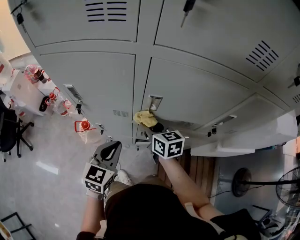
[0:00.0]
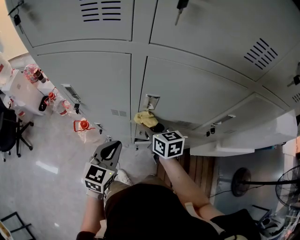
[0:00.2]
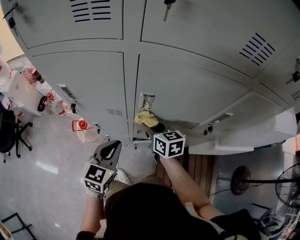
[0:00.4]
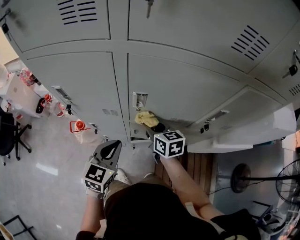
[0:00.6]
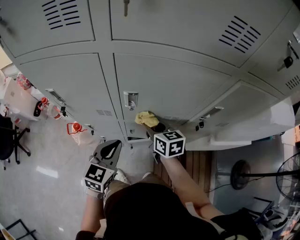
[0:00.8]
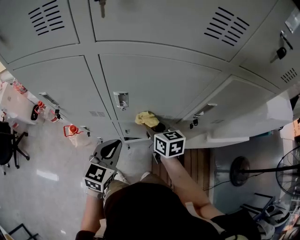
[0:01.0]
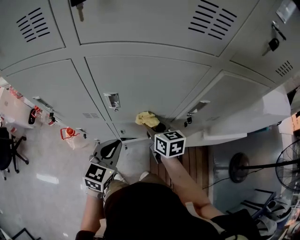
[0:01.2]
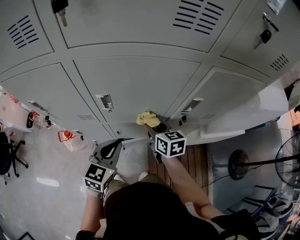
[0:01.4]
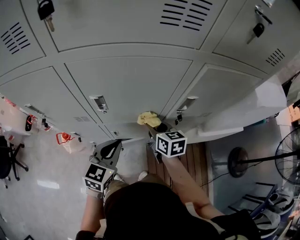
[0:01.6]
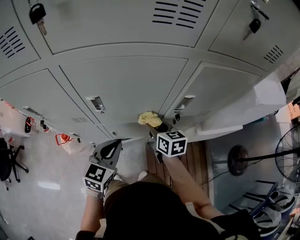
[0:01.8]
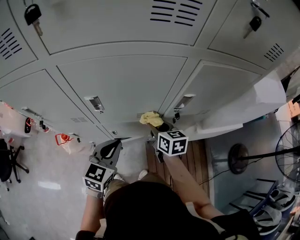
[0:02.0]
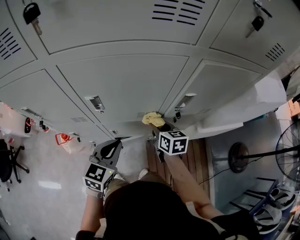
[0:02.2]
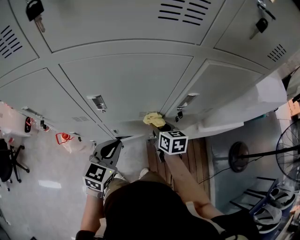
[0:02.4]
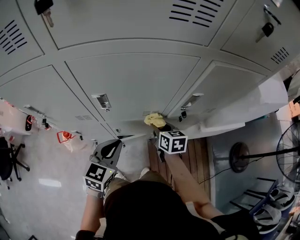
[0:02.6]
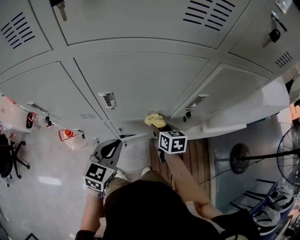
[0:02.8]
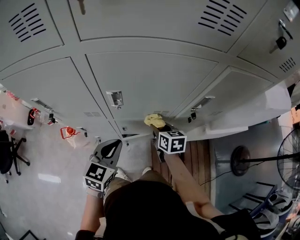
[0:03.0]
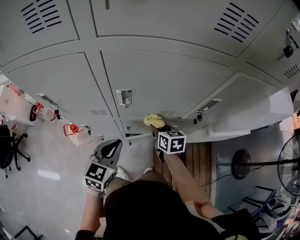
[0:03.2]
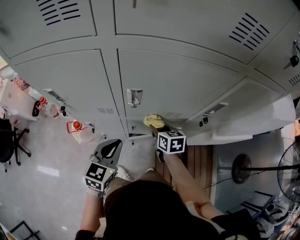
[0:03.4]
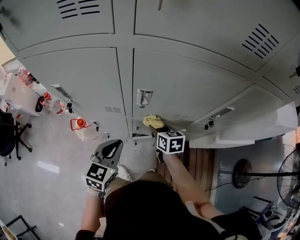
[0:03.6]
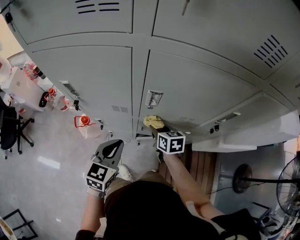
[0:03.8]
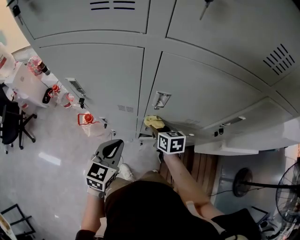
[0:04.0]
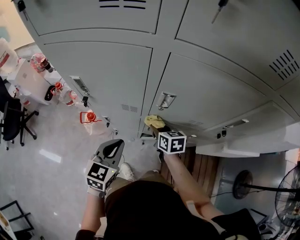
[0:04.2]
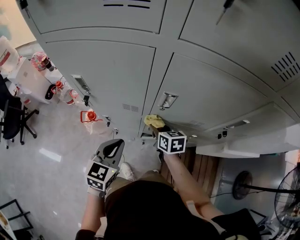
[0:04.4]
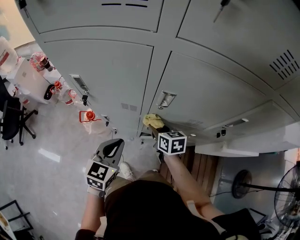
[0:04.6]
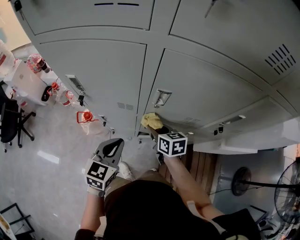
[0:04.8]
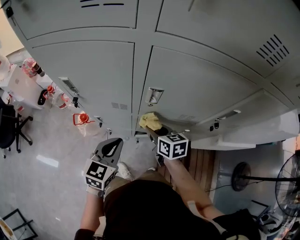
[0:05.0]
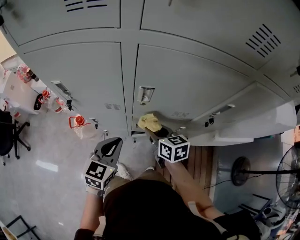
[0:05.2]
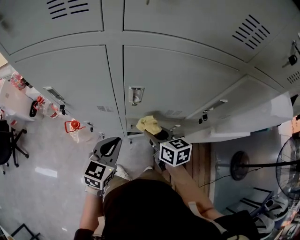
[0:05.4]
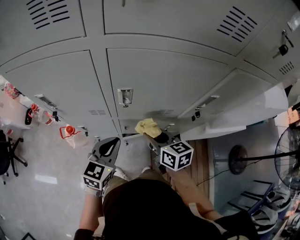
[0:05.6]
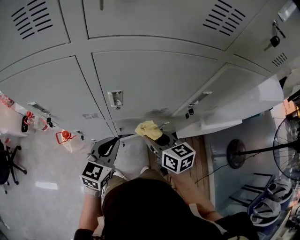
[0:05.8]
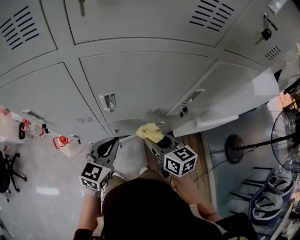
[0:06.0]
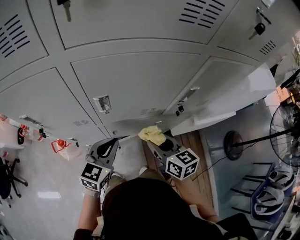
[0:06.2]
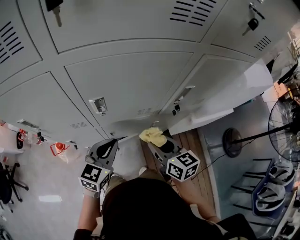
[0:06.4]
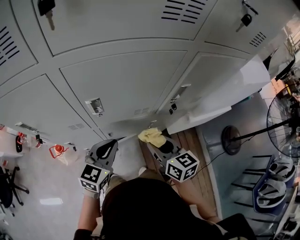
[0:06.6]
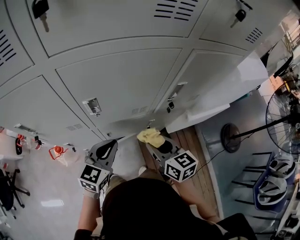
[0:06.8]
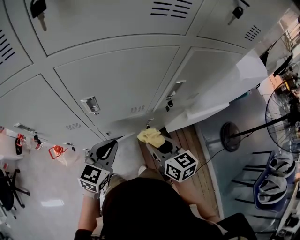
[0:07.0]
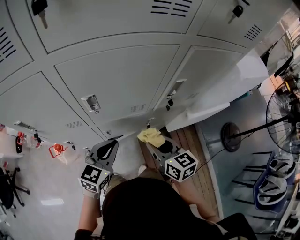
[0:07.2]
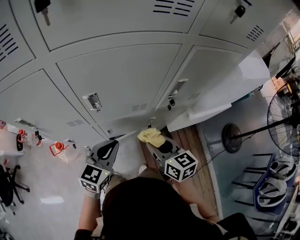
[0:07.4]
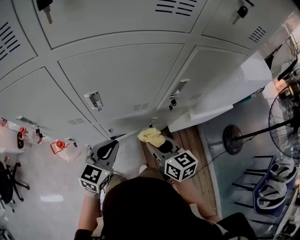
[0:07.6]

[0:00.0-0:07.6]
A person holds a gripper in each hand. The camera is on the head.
0:00.0 to 0:01.6: Both grippers travel together to the right, about 15 cm.
0:01.6 to 0:03.0: The left gripper shifts by about 5 cm. The right gripper heads downward, covering approximately 5 cm.
0:03.0 to 0:04.6: The grippers both shift to the left by approximately 15 cm.
0:04.6 to 0:06.0: The right gripper travels to the right, upward and backward by some 20 cm, while the left gripper travels to the right by roughly 10 cm, and turns by approximately 20 degrees.
0:06.0 to 0:07.6: The right gripper moves about 5 cm.

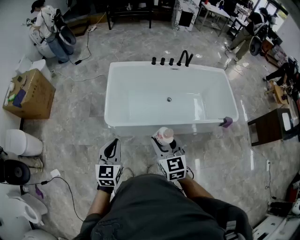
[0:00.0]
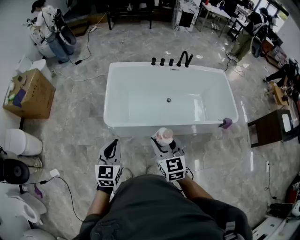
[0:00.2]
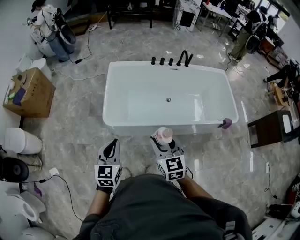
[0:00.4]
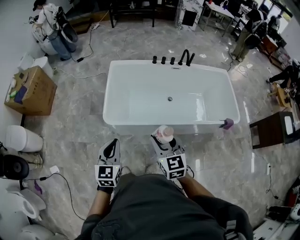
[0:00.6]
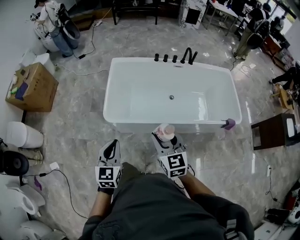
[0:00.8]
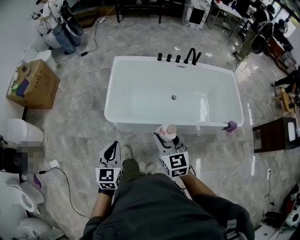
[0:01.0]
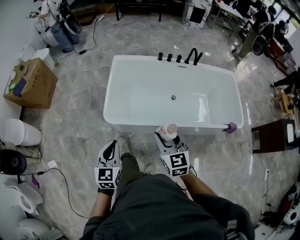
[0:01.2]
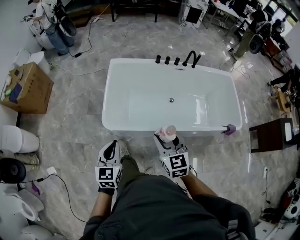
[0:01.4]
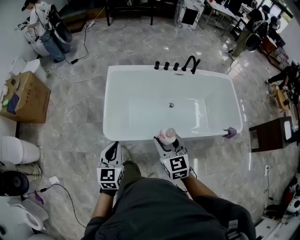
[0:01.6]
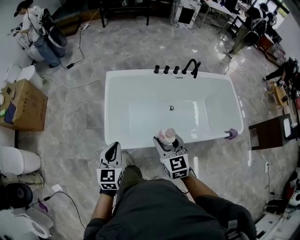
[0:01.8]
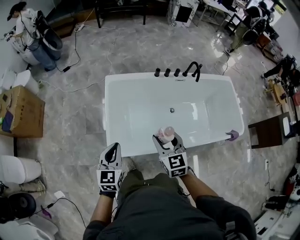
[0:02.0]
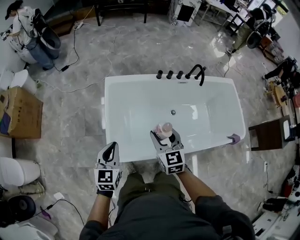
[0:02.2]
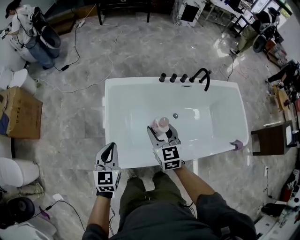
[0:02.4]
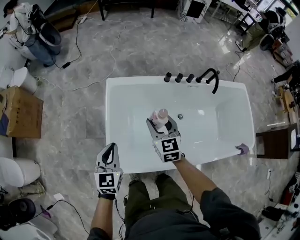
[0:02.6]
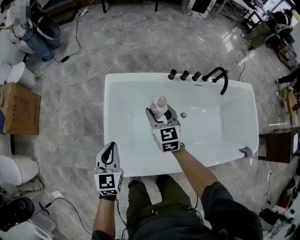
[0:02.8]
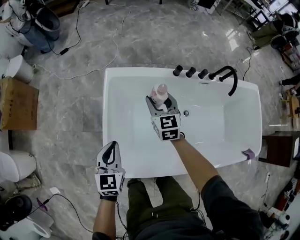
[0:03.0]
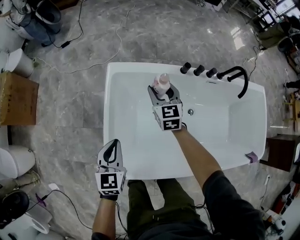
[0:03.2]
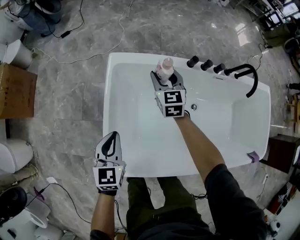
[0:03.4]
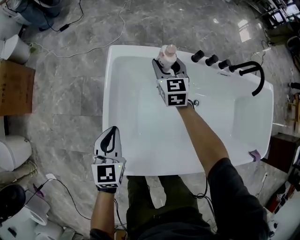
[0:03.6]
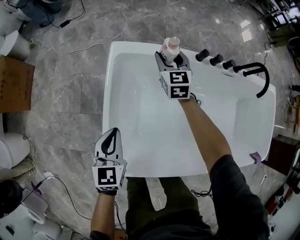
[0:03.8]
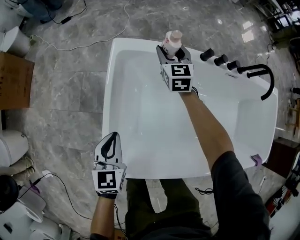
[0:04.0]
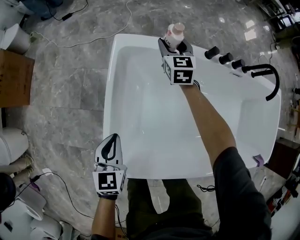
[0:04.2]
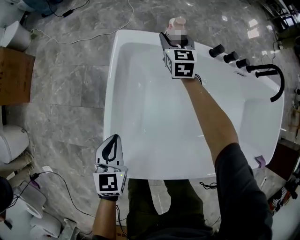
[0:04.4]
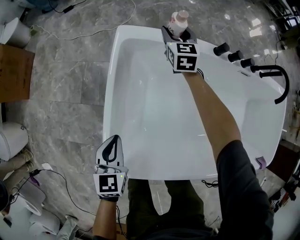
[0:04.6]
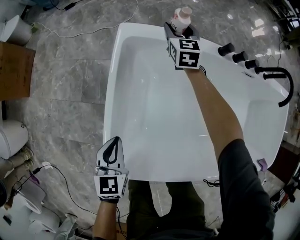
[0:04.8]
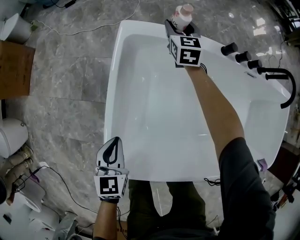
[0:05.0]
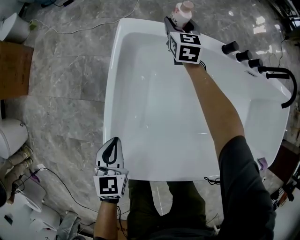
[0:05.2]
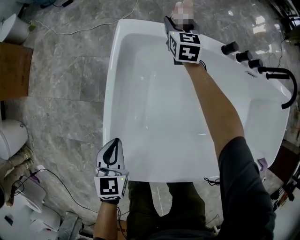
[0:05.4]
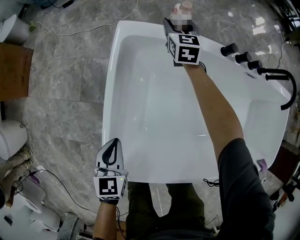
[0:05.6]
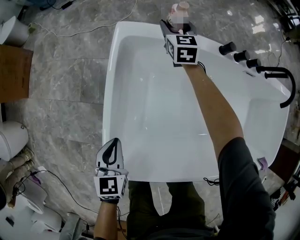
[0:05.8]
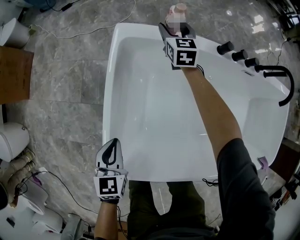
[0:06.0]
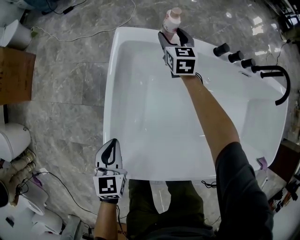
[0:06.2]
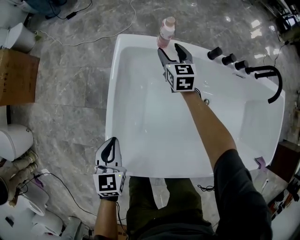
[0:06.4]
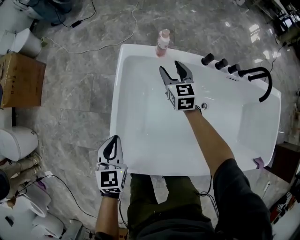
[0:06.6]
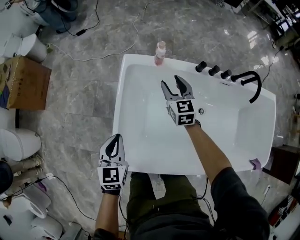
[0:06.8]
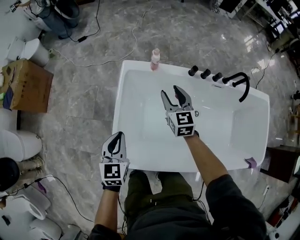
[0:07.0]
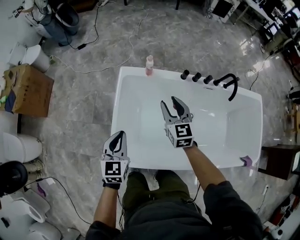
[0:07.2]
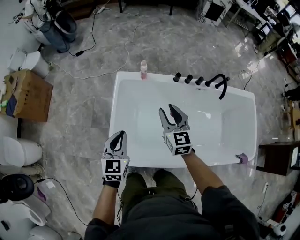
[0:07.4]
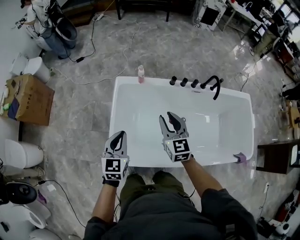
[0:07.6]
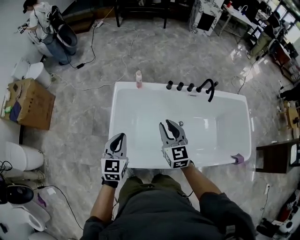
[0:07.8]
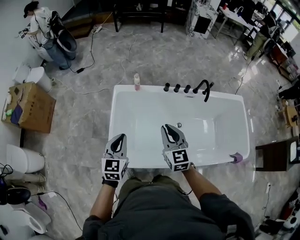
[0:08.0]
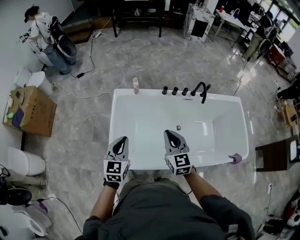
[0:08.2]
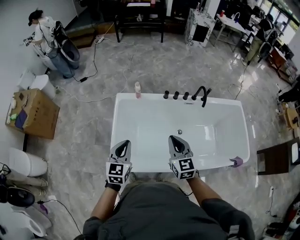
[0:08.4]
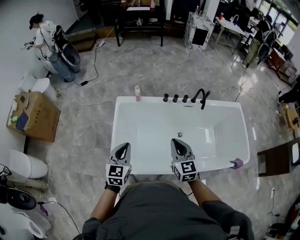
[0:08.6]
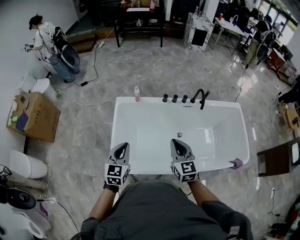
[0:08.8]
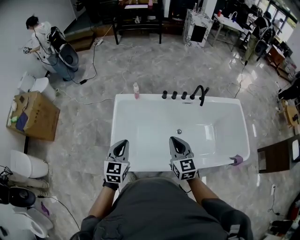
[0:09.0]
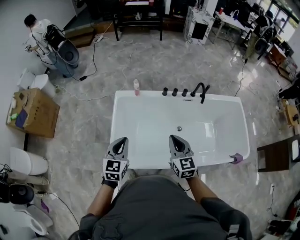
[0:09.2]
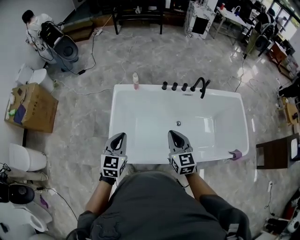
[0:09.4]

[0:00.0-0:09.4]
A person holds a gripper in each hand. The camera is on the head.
0:00.0 to 0:01.6: The grippers both shift forward by approximately 15 cm.
0:01.6 to 0:03.2: The two grippers go about 50 cm forward and downward.
0:03.2 to 0:04.8: The left gripper travels downward by about 15 cm, while the right gripper shifts roughly 25 cm forward and downward.
0:04.8 to 0:06.2: The grippers make only small movements.
0:06.2 to 0:07.8: The right gripper shifts about 60 cm backward and upward, and closes its fingers. The left gripper is displaced upward by roughly 35 cm, and swivels some 20 degrees.
0:07.8 to 0:09.4: The left gripper shifts some 5 cm backward; the right gripper heads backward and to the right, covering approximately 10 cm, and closes up.

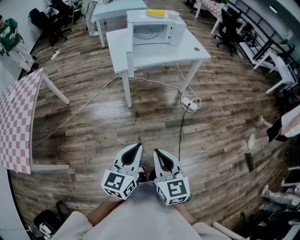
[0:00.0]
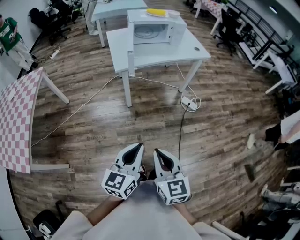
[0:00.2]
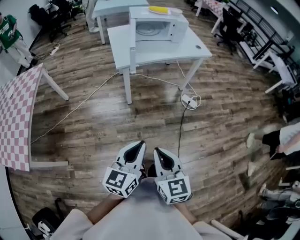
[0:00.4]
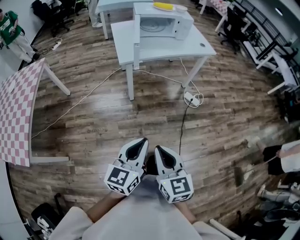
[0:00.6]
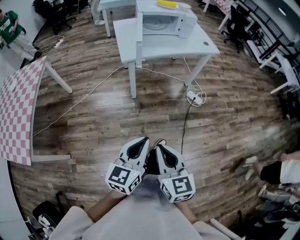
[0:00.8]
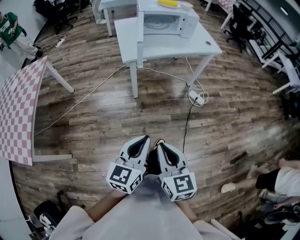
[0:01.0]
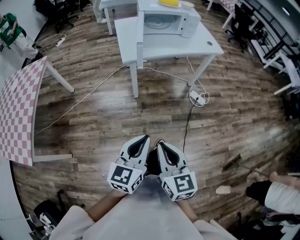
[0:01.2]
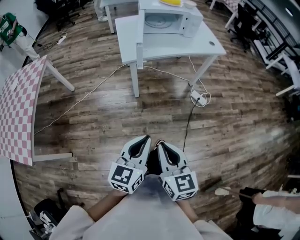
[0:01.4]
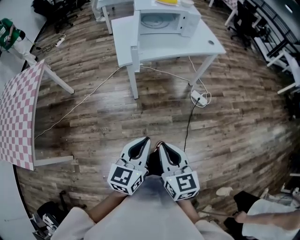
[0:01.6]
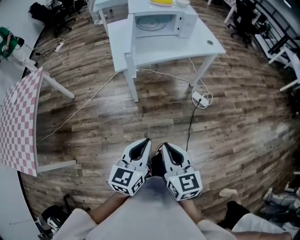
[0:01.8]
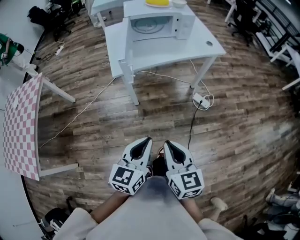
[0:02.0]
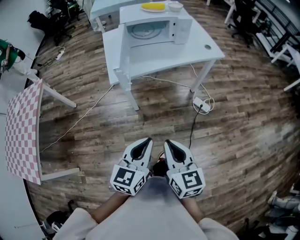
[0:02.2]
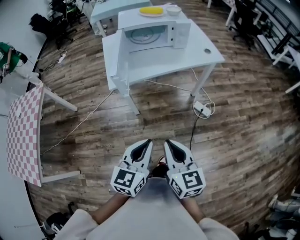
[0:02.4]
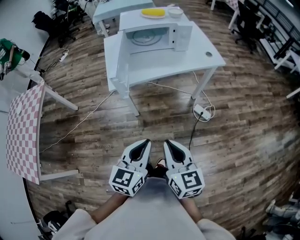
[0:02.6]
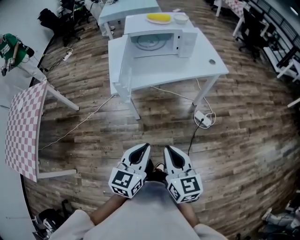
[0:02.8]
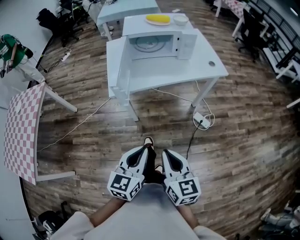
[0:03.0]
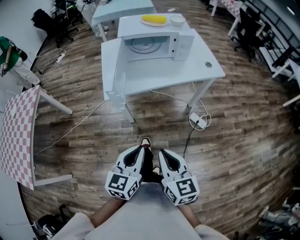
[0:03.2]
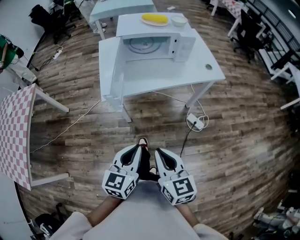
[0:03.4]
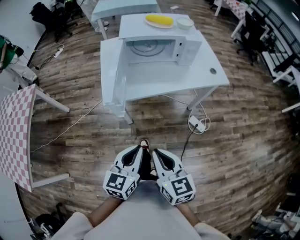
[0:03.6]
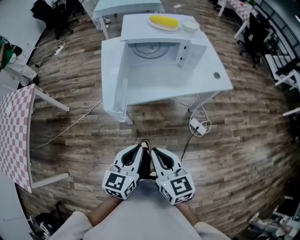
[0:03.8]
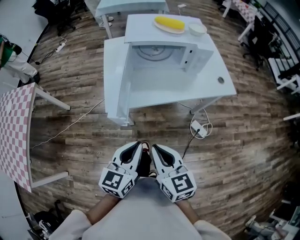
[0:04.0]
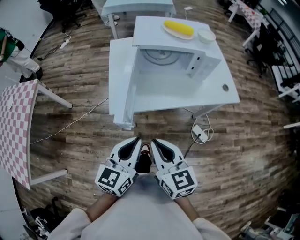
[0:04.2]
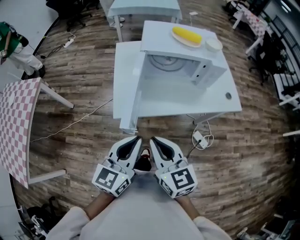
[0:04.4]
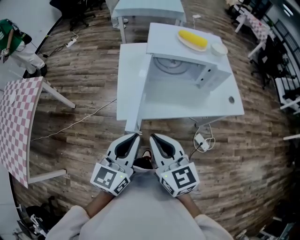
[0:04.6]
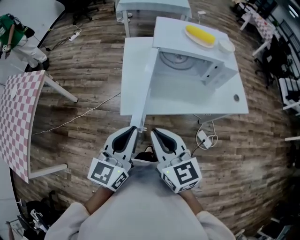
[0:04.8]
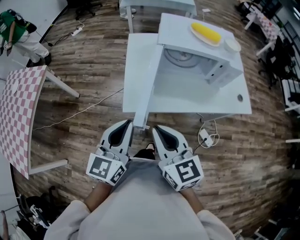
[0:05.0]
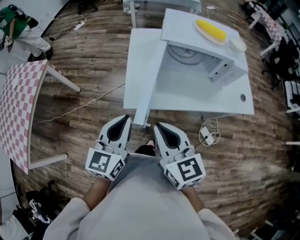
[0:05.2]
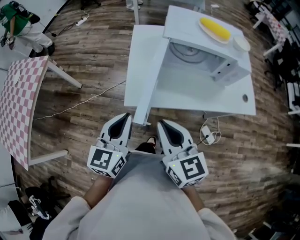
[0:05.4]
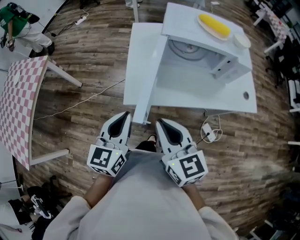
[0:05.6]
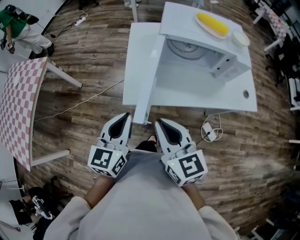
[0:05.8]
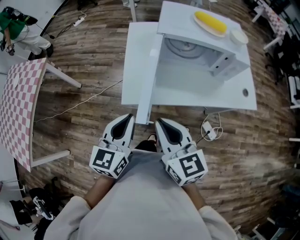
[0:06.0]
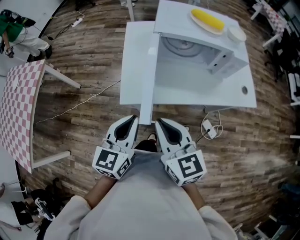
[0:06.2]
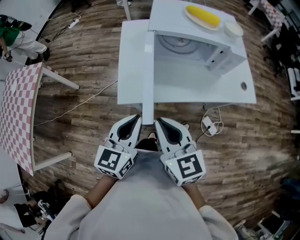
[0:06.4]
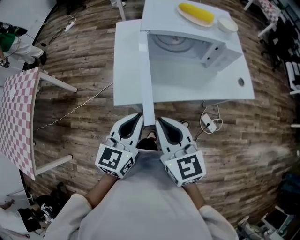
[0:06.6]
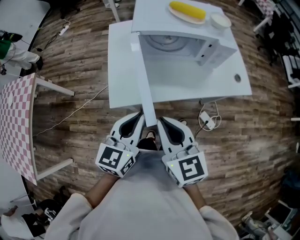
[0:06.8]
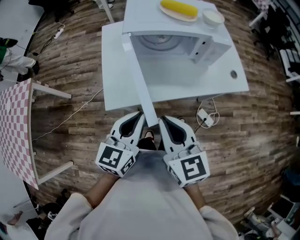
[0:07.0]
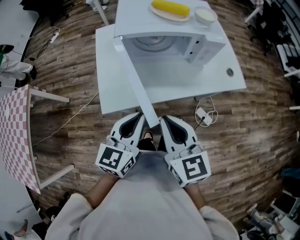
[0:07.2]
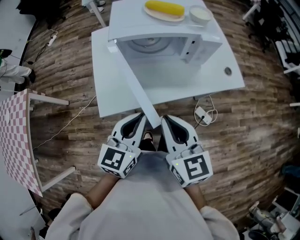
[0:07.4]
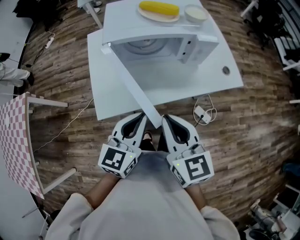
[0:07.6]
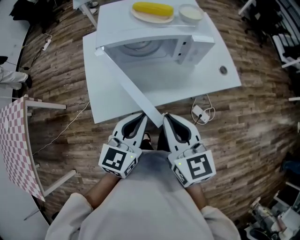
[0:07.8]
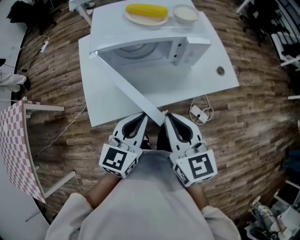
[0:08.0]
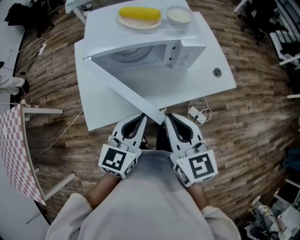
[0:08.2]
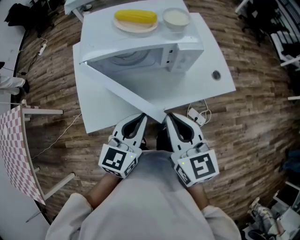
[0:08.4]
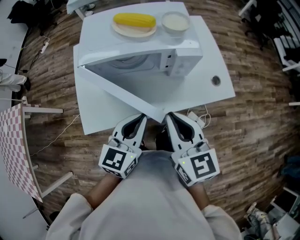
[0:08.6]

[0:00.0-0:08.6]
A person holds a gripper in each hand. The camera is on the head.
0:00.0 to 0:01.4: Both grippers travel together forward, approximately 5 cm.
0:01.4 to 0:02.8: The grippers both shift forward and to the right by some 20 cm.
0:02.8 to 0:04.4: The left gripper is displaced forward by some 25 cm; the right gripper goes approximately 25 cm forward and to the left.
0:04.4 to 0:05.8: The left gripper is displaced to the left and forward by some 10 cm. Meanwhile the right gripper goes some 5 cm forward.
0:05.8 to 0:07.2: Both grippers move to the right, roughly 15 cm.
0:07.2 to 0:08.6: Both grippers travel together to the right and forward, roughly 15 cm.
